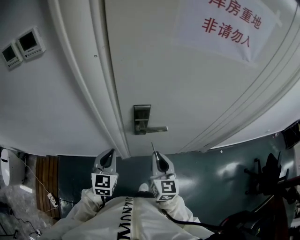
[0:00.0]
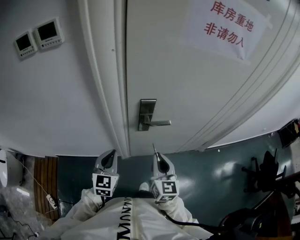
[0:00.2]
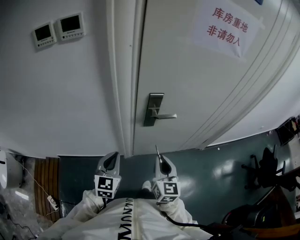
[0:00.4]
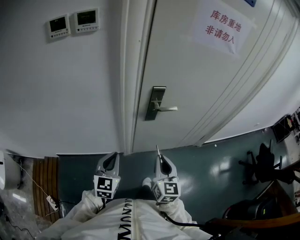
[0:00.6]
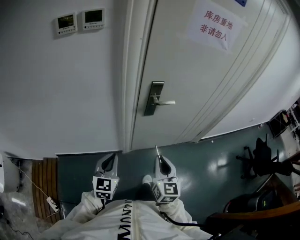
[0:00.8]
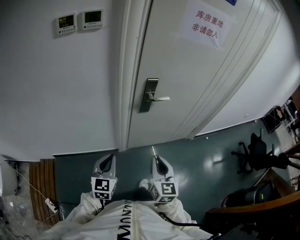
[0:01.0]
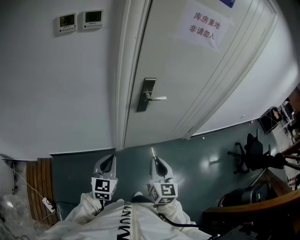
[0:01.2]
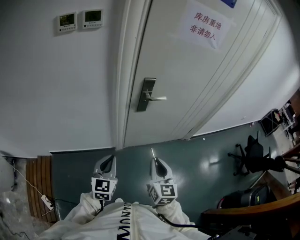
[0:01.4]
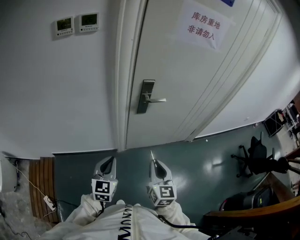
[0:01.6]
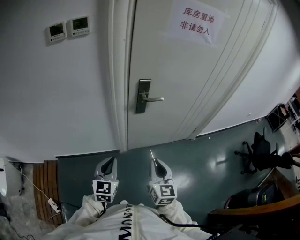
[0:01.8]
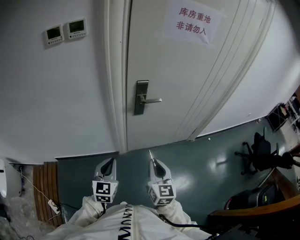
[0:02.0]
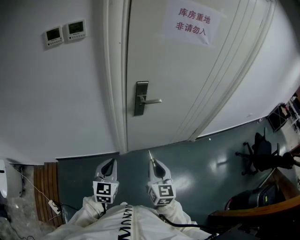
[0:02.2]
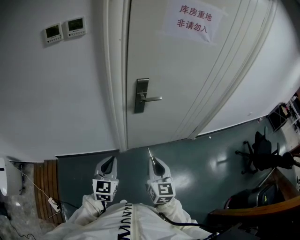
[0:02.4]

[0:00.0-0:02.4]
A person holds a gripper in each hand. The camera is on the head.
0.0 to 1.2 s: The grippers both shift backward by roughly 25 cm.
1.2 to 2.4 s: The grippers make only small movements.

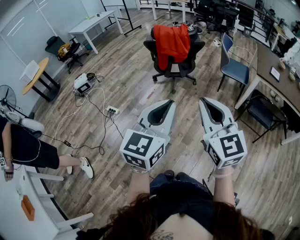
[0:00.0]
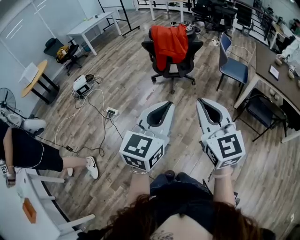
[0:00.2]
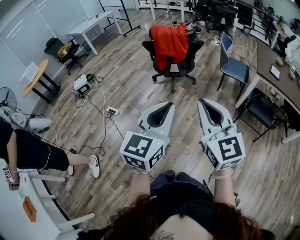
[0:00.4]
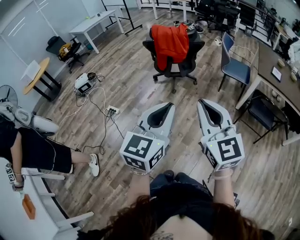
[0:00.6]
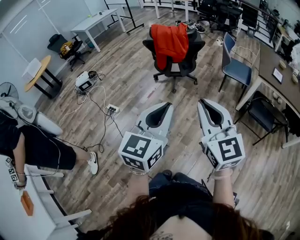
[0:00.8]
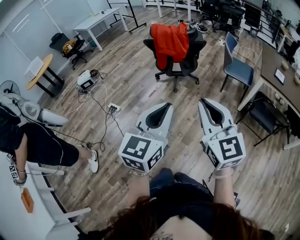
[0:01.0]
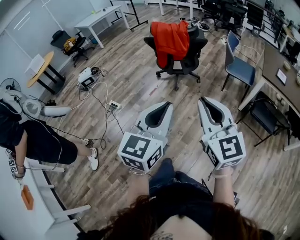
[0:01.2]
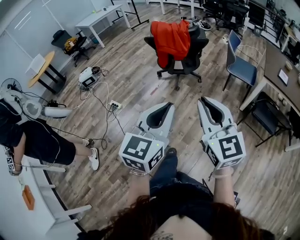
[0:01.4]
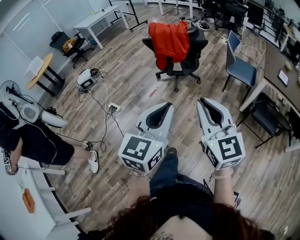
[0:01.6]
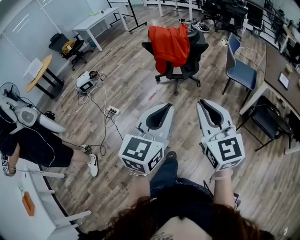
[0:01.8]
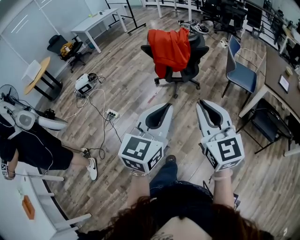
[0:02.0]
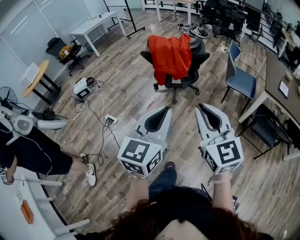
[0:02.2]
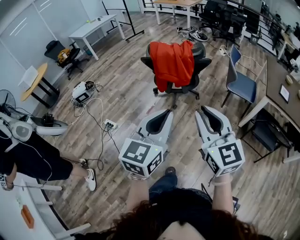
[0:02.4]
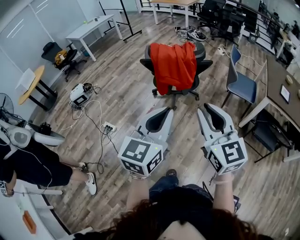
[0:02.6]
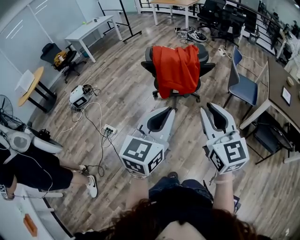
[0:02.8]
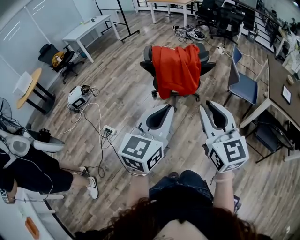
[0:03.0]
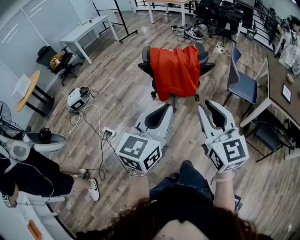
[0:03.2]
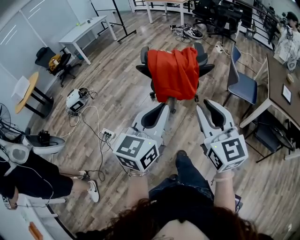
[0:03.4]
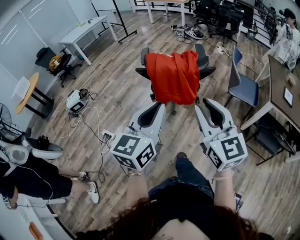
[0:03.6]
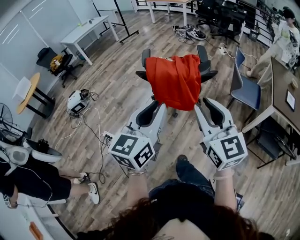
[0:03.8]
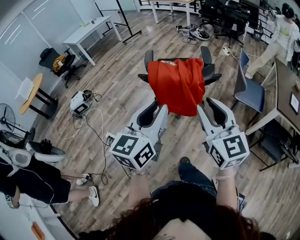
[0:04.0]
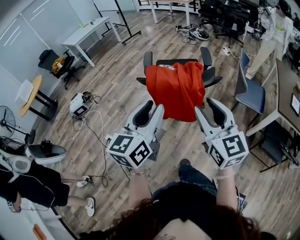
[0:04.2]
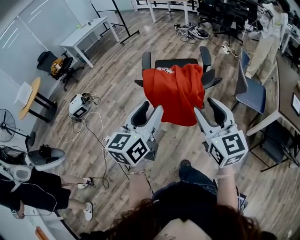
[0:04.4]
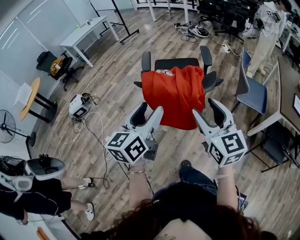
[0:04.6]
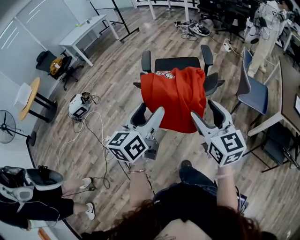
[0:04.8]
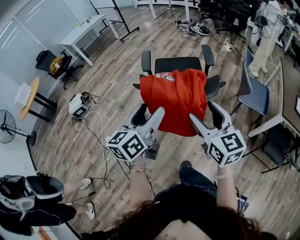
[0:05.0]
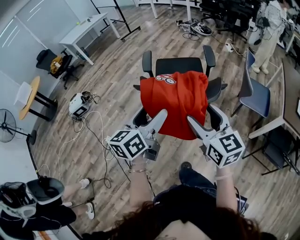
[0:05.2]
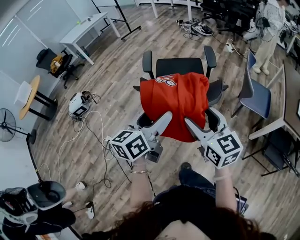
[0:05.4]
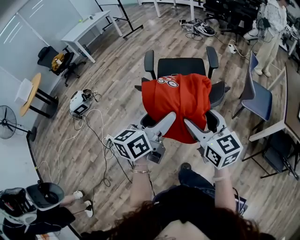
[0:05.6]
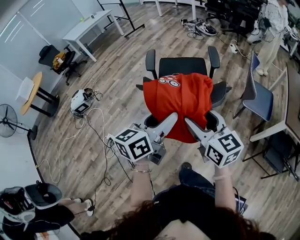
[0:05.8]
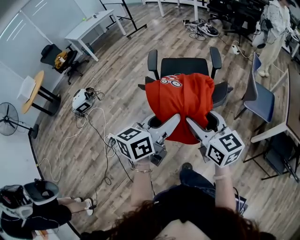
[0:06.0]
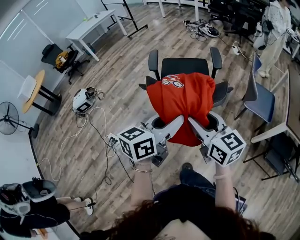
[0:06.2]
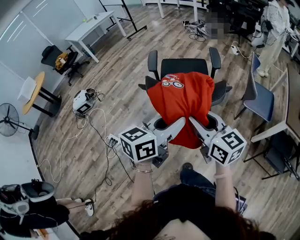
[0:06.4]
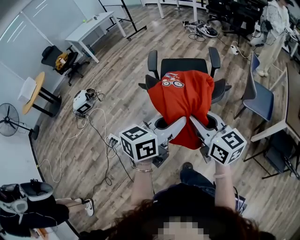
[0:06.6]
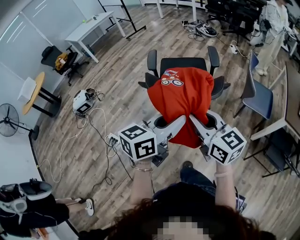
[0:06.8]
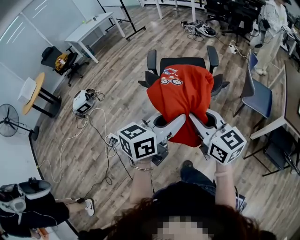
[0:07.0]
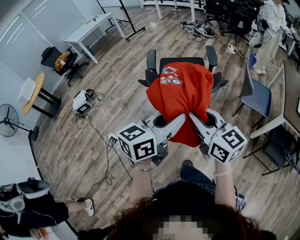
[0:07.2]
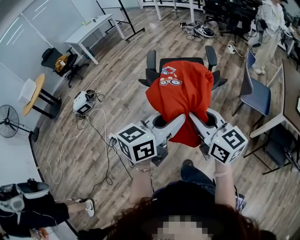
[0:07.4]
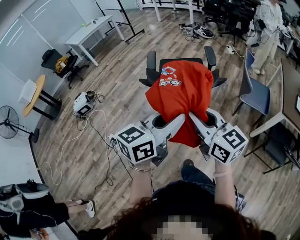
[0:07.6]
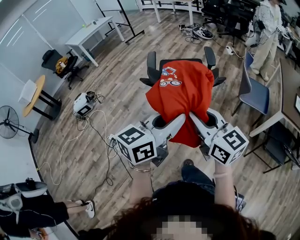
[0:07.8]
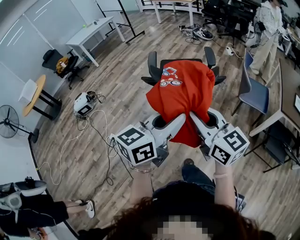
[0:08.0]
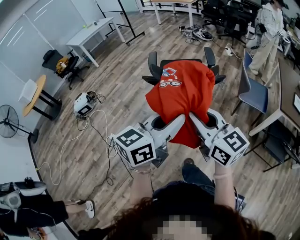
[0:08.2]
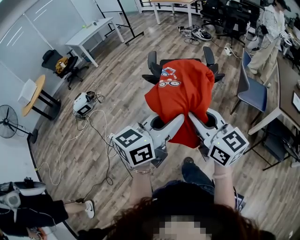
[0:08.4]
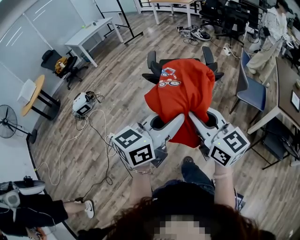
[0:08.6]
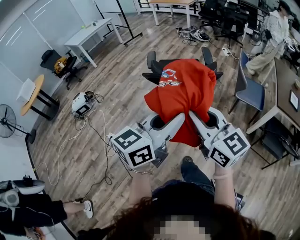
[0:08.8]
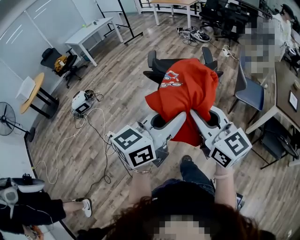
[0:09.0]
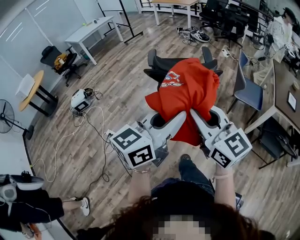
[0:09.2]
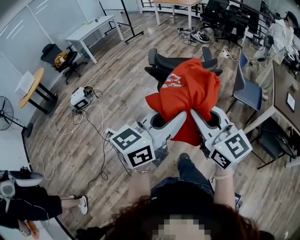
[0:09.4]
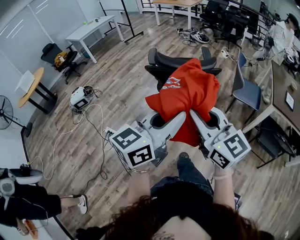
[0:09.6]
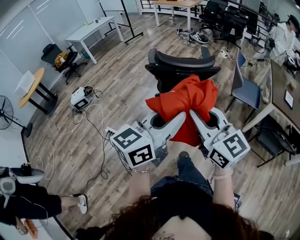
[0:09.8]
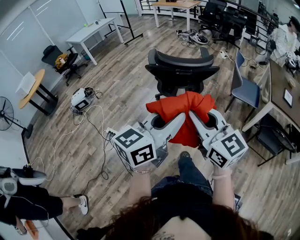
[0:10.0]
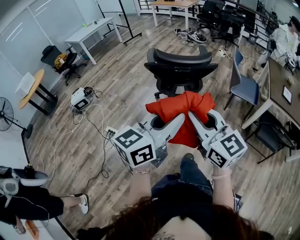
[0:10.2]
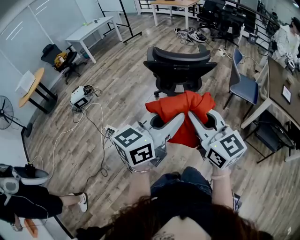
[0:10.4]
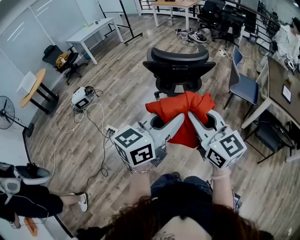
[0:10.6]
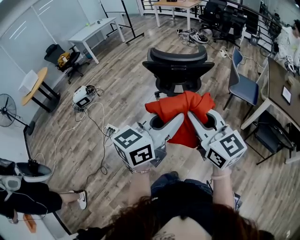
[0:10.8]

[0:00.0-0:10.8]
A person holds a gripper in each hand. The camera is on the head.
0.0 to 1.6 s: Both grippers move forward, approximately 5 cm.
1.6 to 3.0 s: The two grippers go some 25 cm forward.
3.0 to 4.6 s: The two grippers go some 20 cm forward. The left gripper opens. The right gripper opens.
4.6 to 6.2 s: The left gripper is displaced to the right by about 5 cm, and rotates approximately 20 degrees, while the right gripper changes place by some 5 cm.
6.2 to 7.8 s: Both grippers travel together backward and upward, some 10 cm. The right gripper closes.
7.8 to 9.2 s: The grippers both shift backward by approximately 10 cm.
9.2 to 10.8 s: The two grippers go some 10 cm backward.

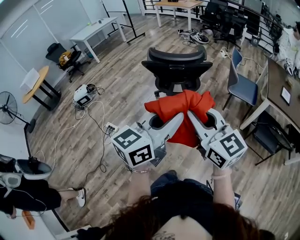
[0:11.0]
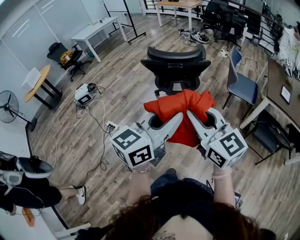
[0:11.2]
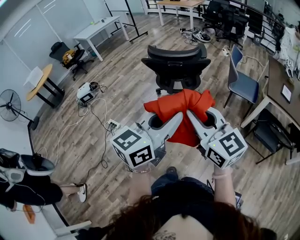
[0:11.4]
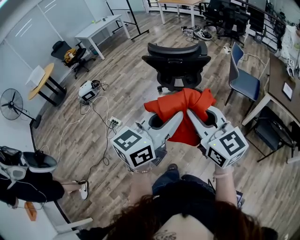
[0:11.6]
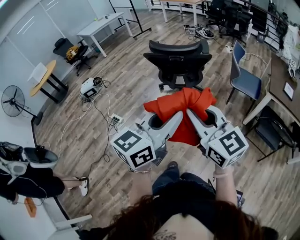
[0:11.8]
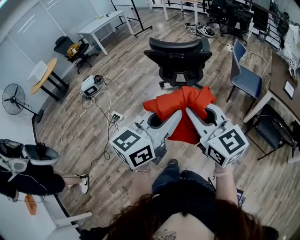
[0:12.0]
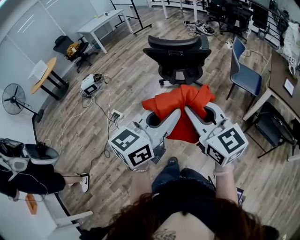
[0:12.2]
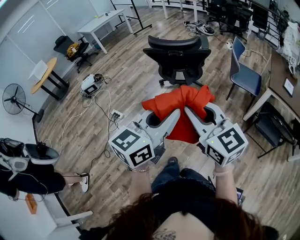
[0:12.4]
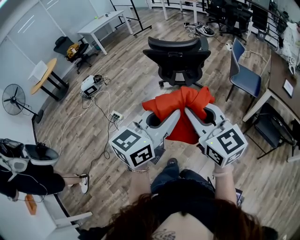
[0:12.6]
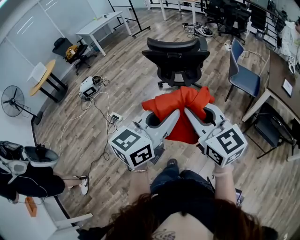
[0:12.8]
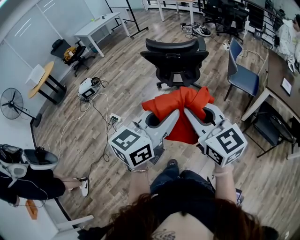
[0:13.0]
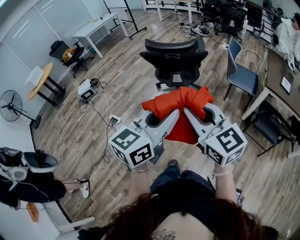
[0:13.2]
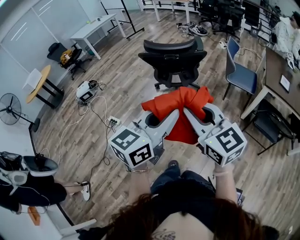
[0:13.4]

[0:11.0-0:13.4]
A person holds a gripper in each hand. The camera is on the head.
11.0 to 12.2 s: The two grippers go about 10 cm backward.
12.2 to 13.4 s: The grippers move only a little.

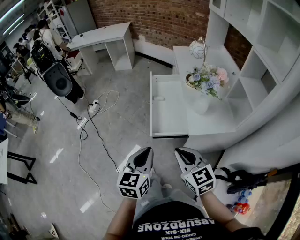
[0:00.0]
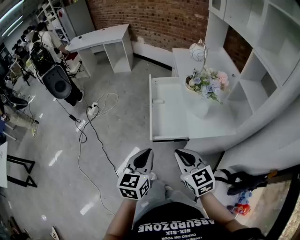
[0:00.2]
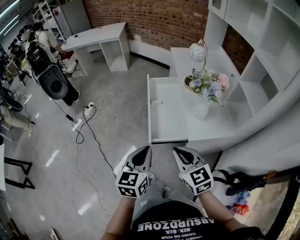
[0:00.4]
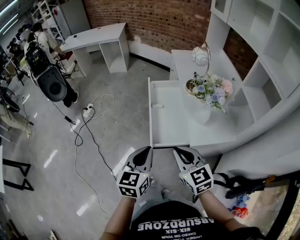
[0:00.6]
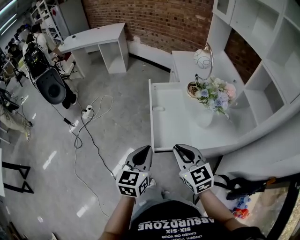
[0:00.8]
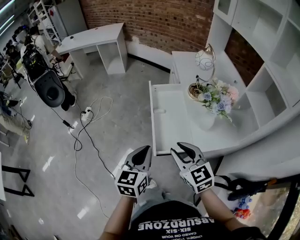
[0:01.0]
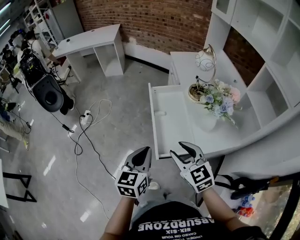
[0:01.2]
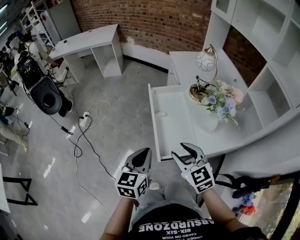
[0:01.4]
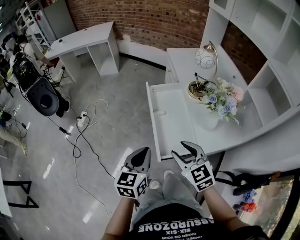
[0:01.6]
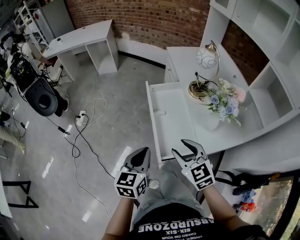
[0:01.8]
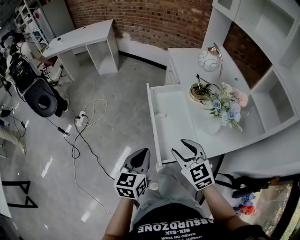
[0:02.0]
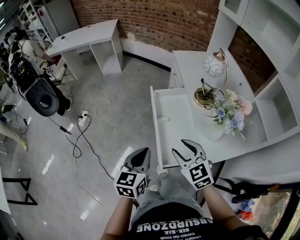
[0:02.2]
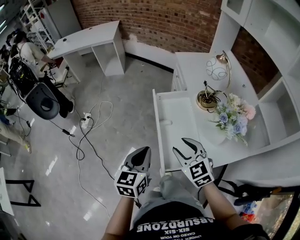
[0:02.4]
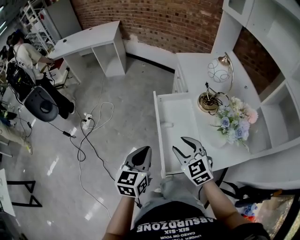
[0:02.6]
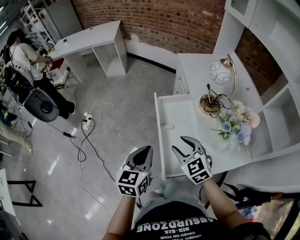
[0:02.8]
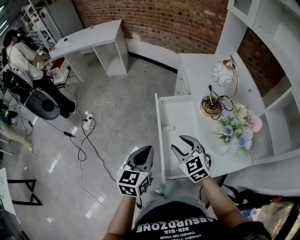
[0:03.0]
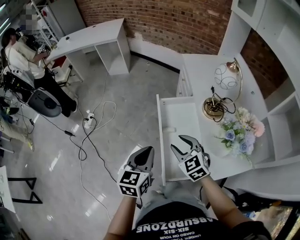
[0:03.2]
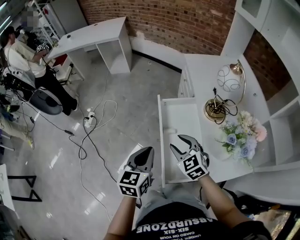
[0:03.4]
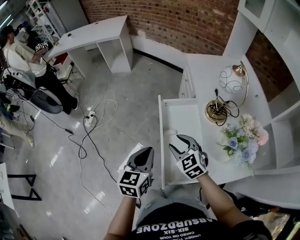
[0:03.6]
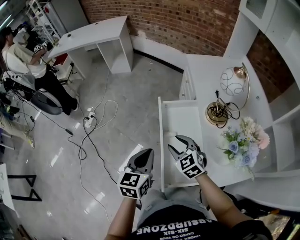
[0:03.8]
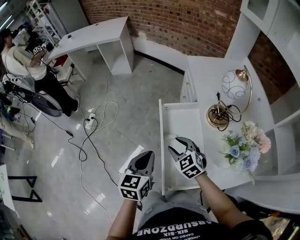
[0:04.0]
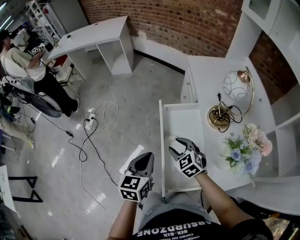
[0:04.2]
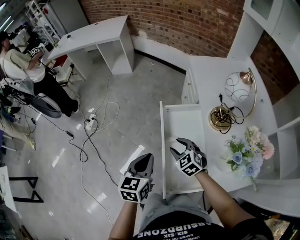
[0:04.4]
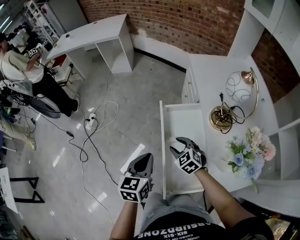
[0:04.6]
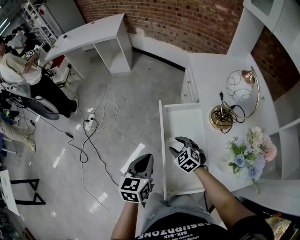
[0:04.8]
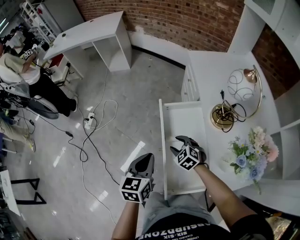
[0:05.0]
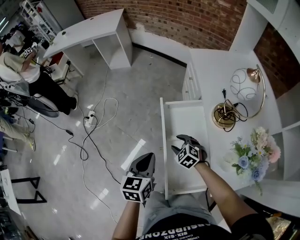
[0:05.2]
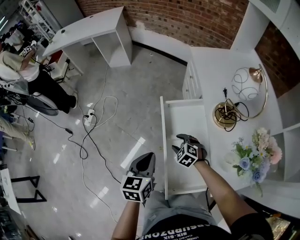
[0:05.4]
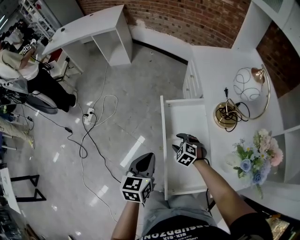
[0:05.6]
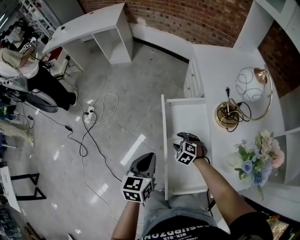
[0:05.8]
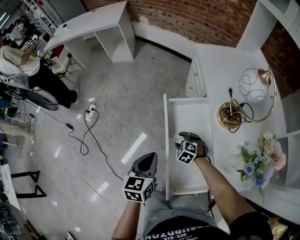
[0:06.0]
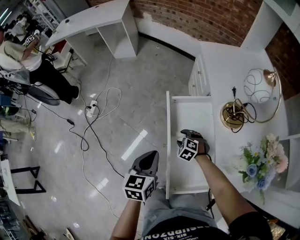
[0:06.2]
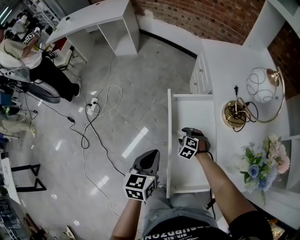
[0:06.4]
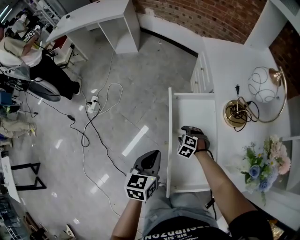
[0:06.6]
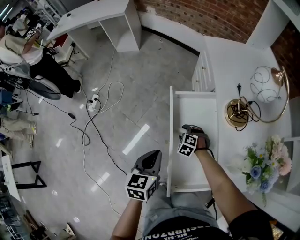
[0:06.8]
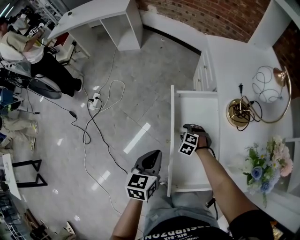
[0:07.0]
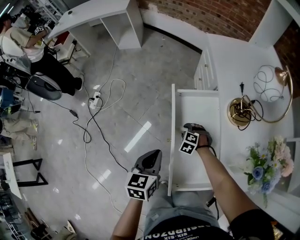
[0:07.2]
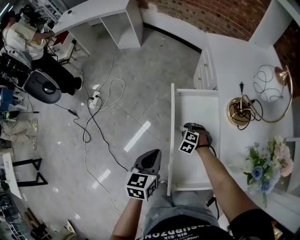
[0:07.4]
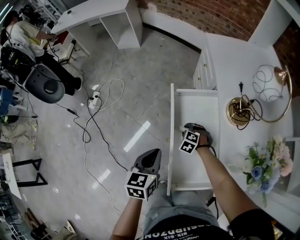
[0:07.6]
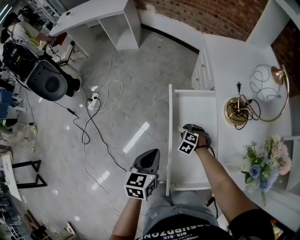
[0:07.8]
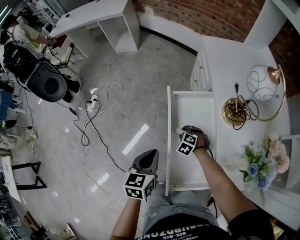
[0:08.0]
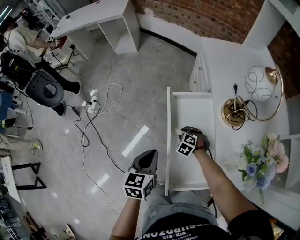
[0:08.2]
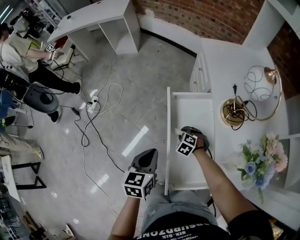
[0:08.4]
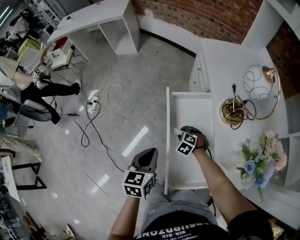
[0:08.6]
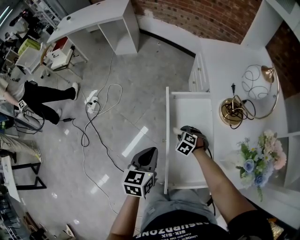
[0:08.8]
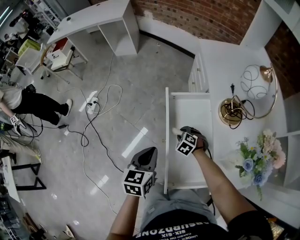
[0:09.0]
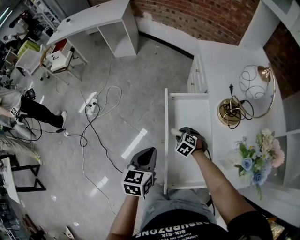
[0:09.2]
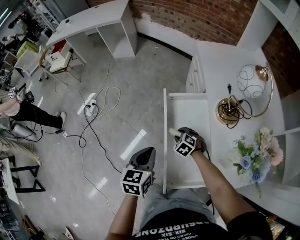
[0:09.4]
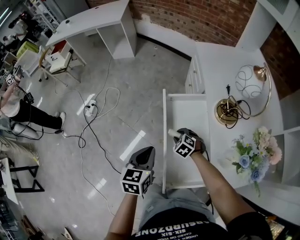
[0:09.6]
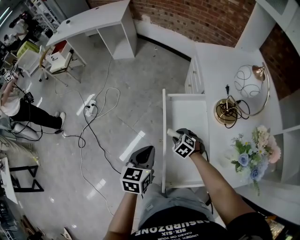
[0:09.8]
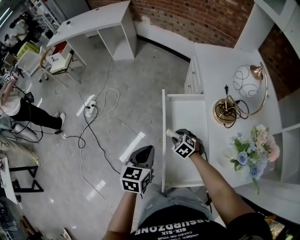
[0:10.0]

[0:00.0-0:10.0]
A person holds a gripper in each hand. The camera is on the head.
0.0 to 1.4 s: The right gripper moves forward, about 20 cm, and opens. Meanwhile the left gripper goes approximately 20 cm forward and to the left.
1.4 to 2.8 s: Both grippers travel together forward, roughly 15 cm.
2.8 to 4.2 s: The left gripper shifts some 10 cm forward and downward, while the right gripper is displaced forward and downward by roughly 15 cm.
4.2 to 5.8 s: The left gripper is displaced downward by about 5 cm. Meanwhile the right gripper moves downward, roughly 15 cm, and rotates approximately 30 degrees.
5.8 to 7.2 s: The right gripper heads downward, covering about 5 cm.
7.2 to 8.6 s: The grippers move only a little.
8.6 to 10.0 s: The right gripper travels upward by some 5 cm.
